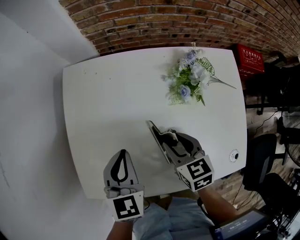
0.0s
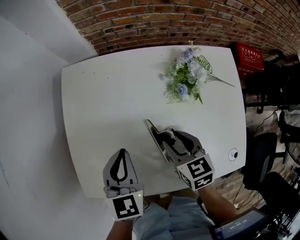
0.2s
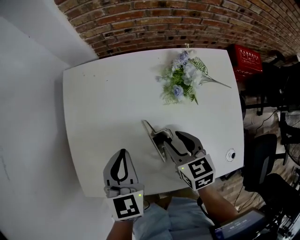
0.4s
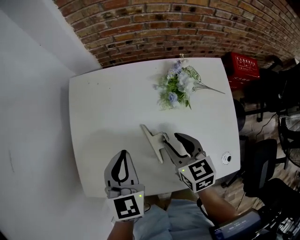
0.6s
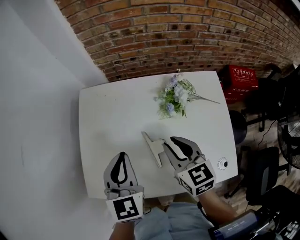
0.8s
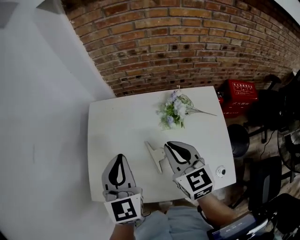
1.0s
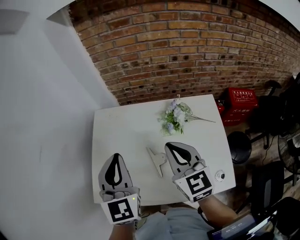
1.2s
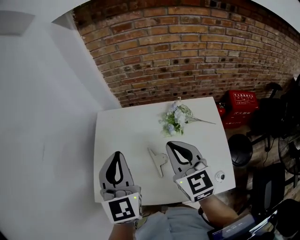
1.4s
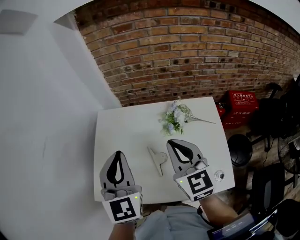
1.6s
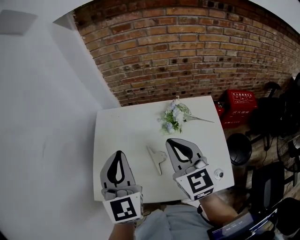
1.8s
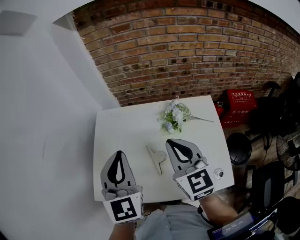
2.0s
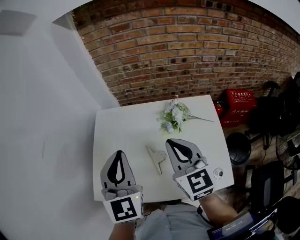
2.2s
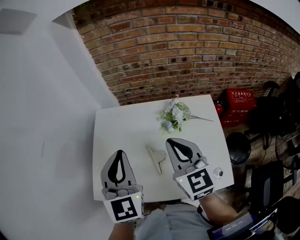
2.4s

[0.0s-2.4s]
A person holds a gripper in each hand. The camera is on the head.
0.0s to 1.2s: Both grippers move upward, roughly 25 cm. The left gripper swivels roughly 30 degrees. Meanwhile the right gripper swivels approximately 30 degrees, and closes.
1.2s to 2.4s: There are only small adjustments of the grippers.

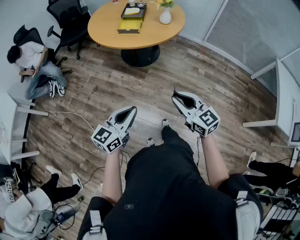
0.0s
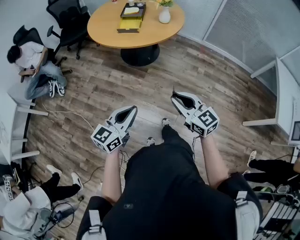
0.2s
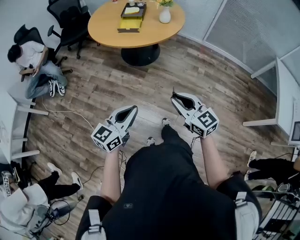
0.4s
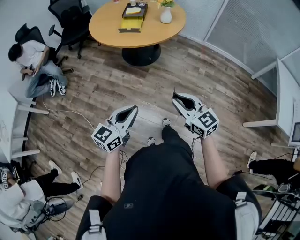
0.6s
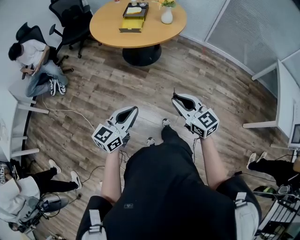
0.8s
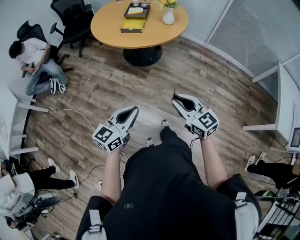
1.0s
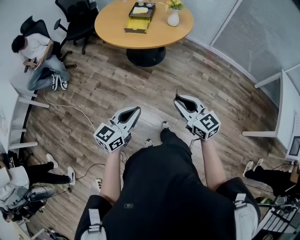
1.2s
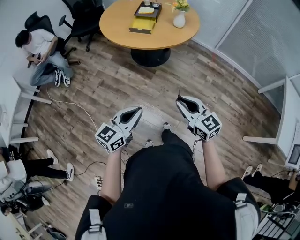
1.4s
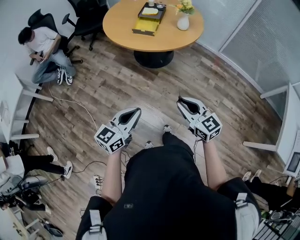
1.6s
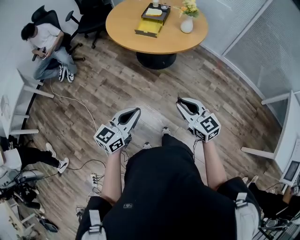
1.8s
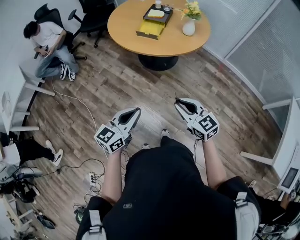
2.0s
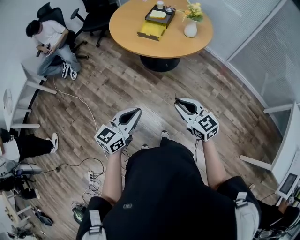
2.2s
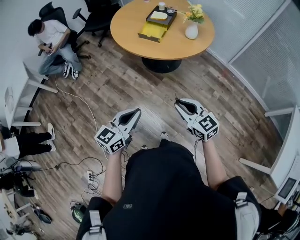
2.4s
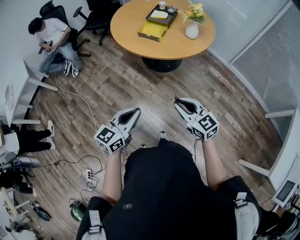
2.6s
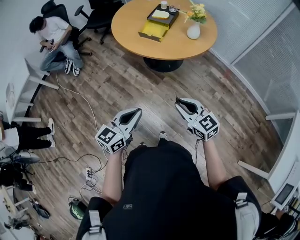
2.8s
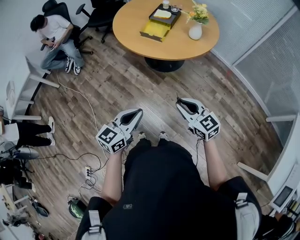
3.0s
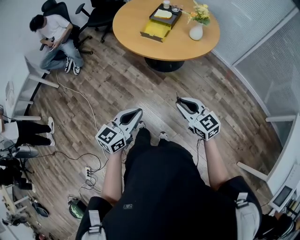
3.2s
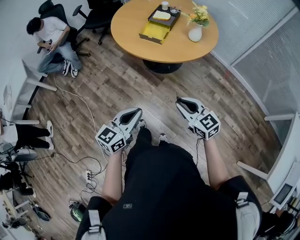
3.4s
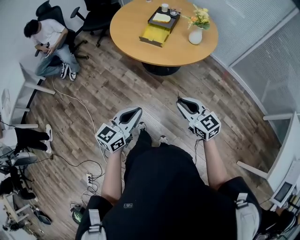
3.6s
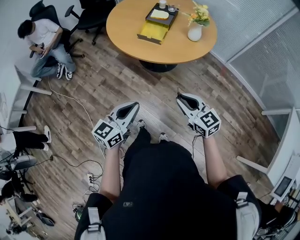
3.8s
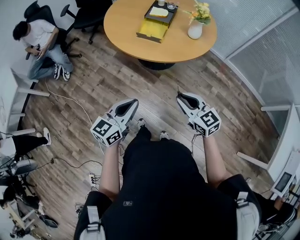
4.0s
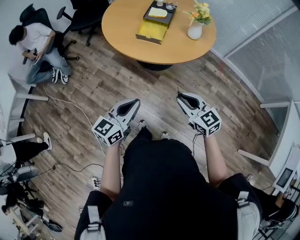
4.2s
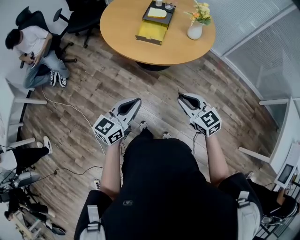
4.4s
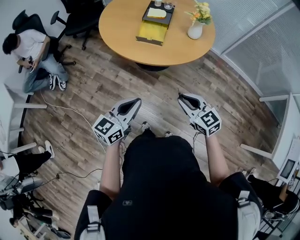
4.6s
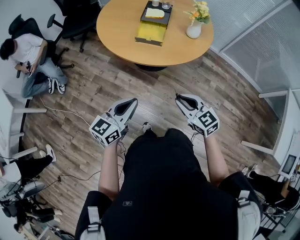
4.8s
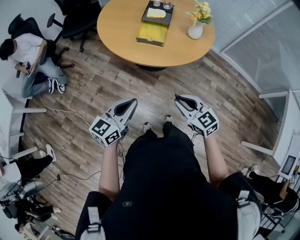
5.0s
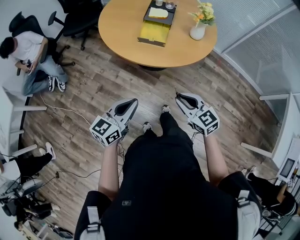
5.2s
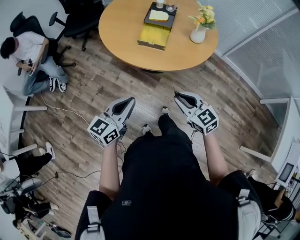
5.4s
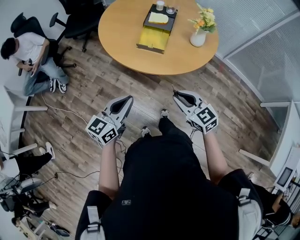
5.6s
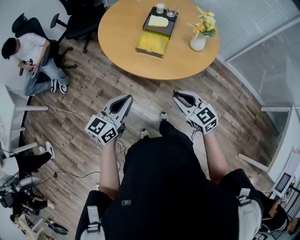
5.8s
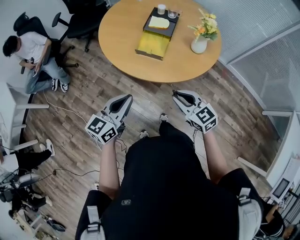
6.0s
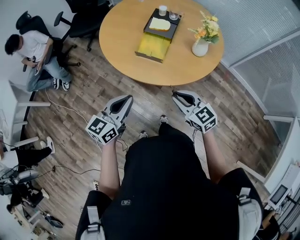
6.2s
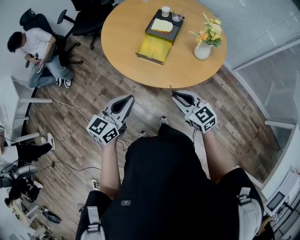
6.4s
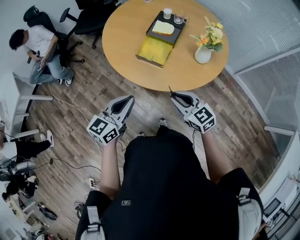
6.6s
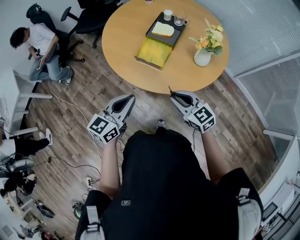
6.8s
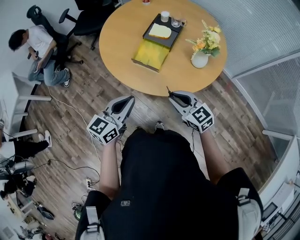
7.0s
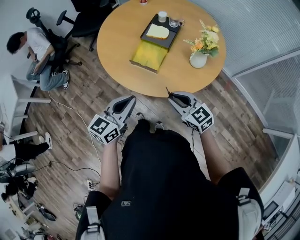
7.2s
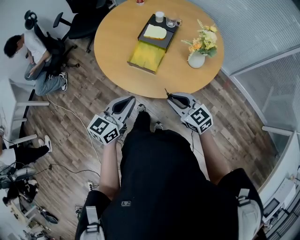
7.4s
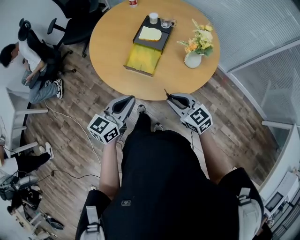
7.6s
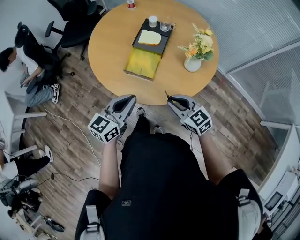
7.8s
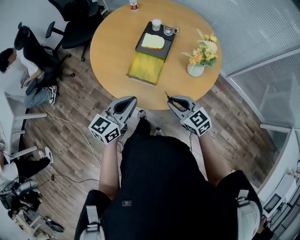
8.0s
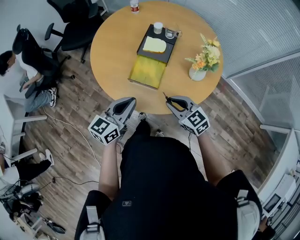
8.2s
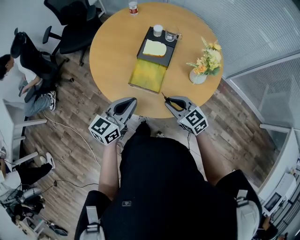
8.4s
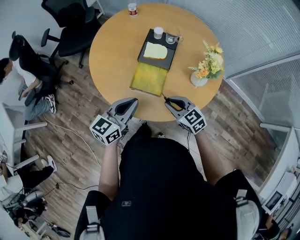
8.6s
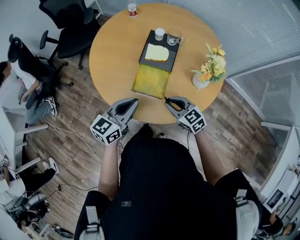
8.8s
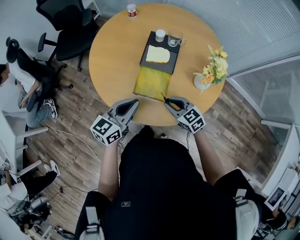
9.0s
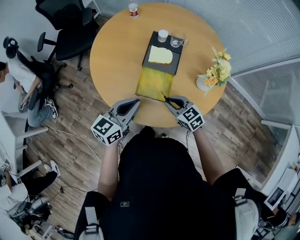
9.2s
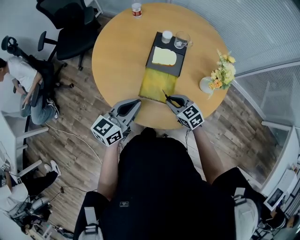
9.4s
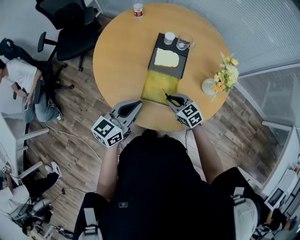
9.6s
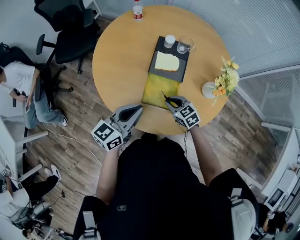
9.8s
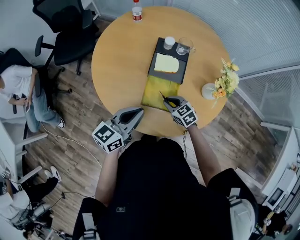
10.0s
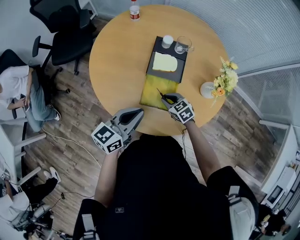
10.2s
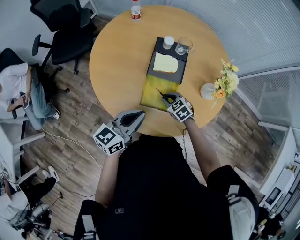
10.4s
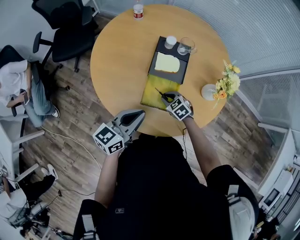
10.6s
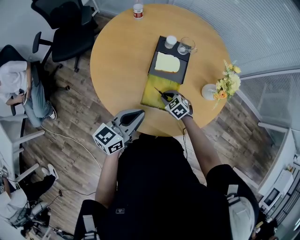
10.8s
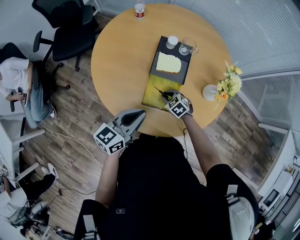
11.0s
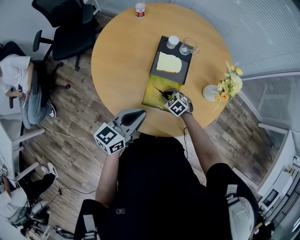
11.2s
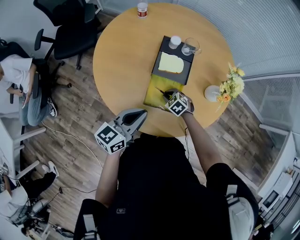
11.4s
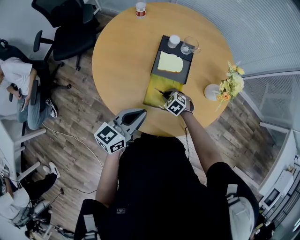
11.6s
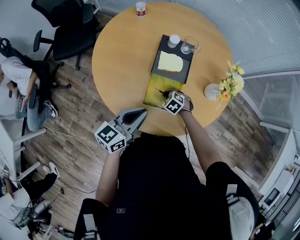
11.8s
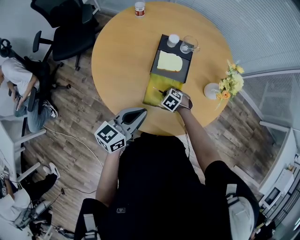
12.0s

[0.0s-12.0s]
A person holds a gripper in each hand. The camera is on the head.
0.0s to 1.6s: The right gripper goes some 5 cm forward.
1.6s to 3.0s: The left gripper goes roughly 10 cm to the right and forward; the right gripper moves forward and to the right, roughly 10 cm.
3.0s to 4.4s: The two grippers go about 15 cm forward and to the left.
4.4s to 6.0s: Both grippers travel together forward, about 15 cm.
6.0s to 7.6s: The left gripper travels to the right and forward by about 15 cm; the right gripper travels forward and to the right by some 10 cm.
7.6s to 9.0s: The left gripper moves forward, roughly 15 cm, while the right gripper shifts some 20 cm forward, to the left and downward.
9.0s to 10.4s: The right gripper heads downward and forward, covering approximately 15 cm.
10.4s to 12.0s: The right gripper goes about 5 cm downward, and rotates about 20 degrees.

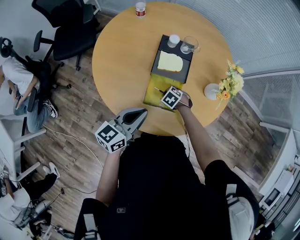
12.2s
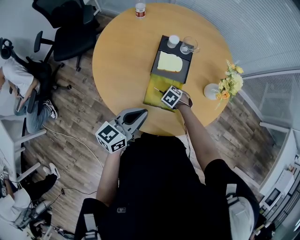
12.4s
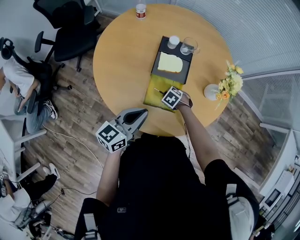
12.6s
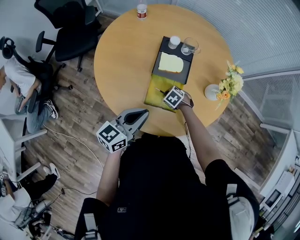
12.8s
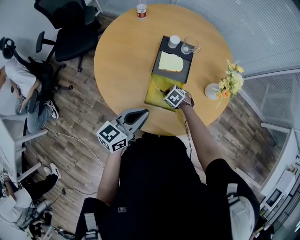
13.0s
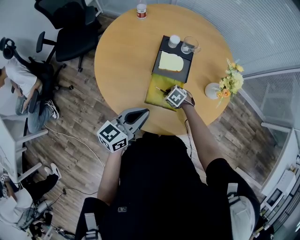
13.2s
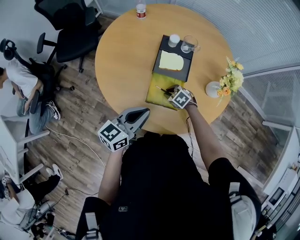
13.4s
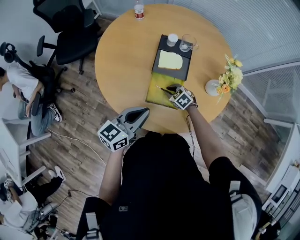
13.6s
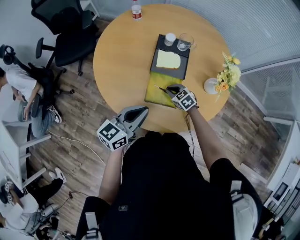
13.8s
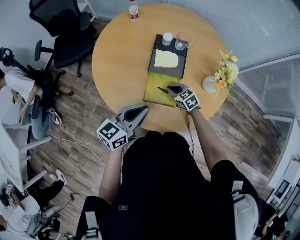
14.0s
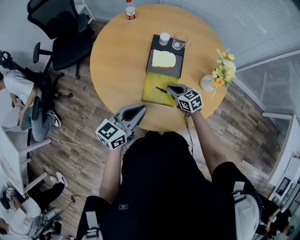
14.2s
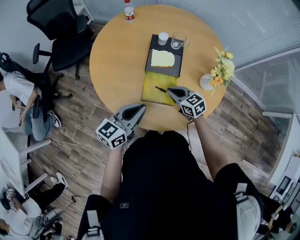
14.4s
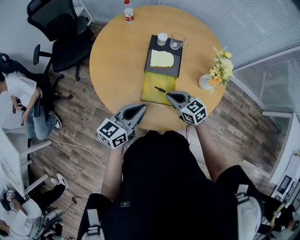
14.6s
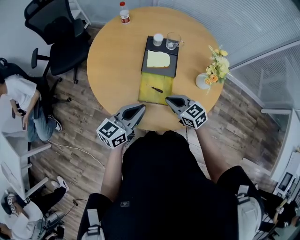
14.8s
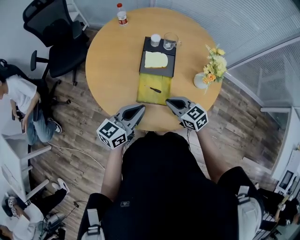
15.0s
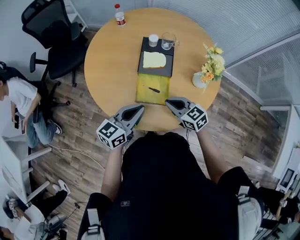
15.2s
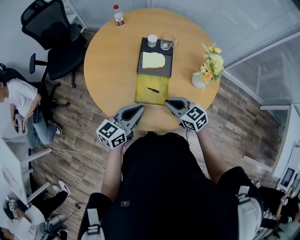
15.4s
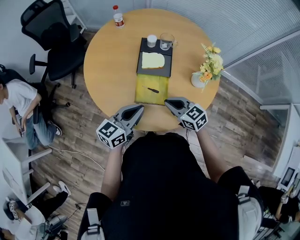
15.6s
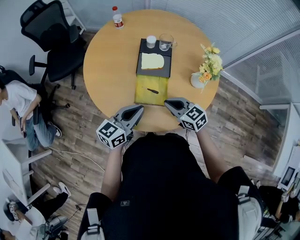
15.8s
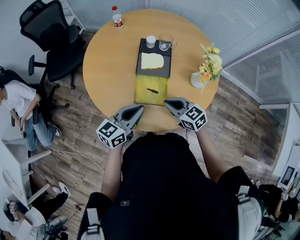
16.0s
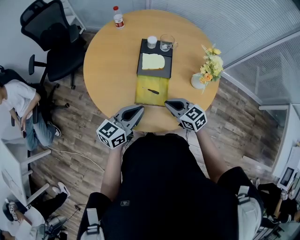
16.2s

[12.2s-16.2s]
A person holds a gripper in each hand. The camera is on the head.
12.2s to 13.6s: The grippers stay close to where they were, moving slightly.
13.6s to 14.8s: The right gripper shifts roughly 20 cm upward and backward, and rotates some 30 degrees.
14.8s to 16.2s: The grippers make only small movements.

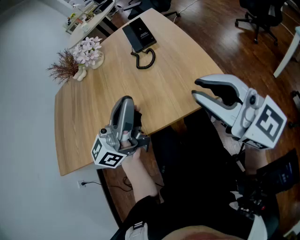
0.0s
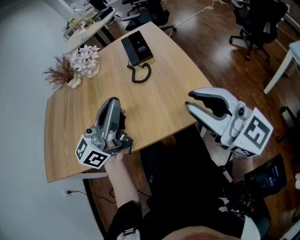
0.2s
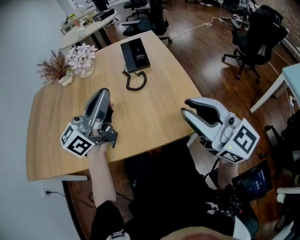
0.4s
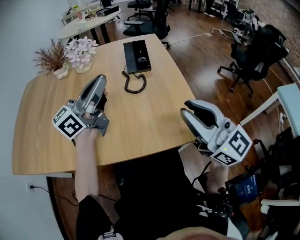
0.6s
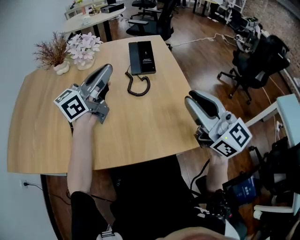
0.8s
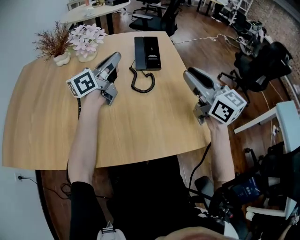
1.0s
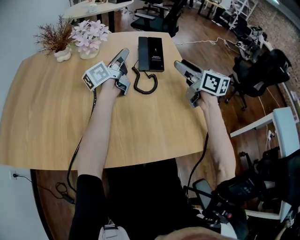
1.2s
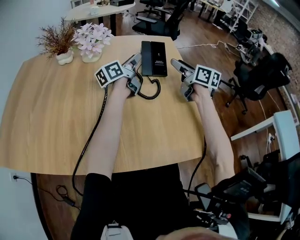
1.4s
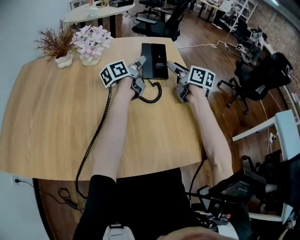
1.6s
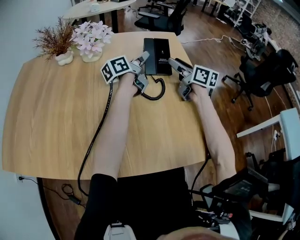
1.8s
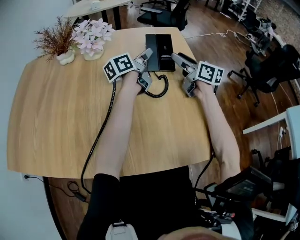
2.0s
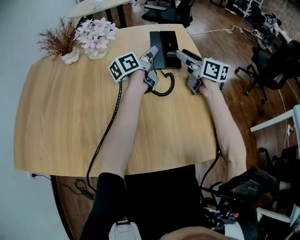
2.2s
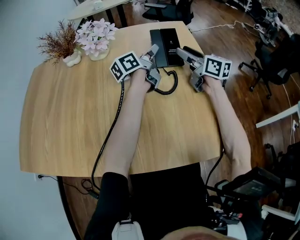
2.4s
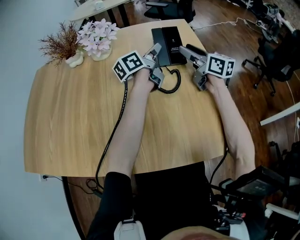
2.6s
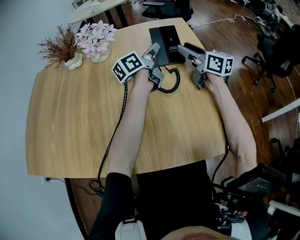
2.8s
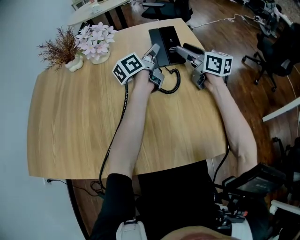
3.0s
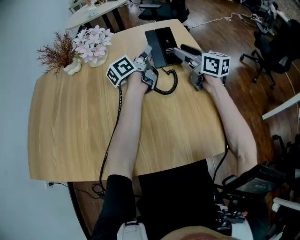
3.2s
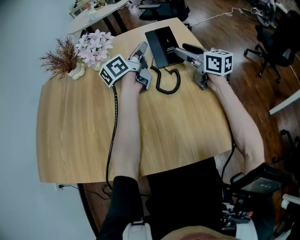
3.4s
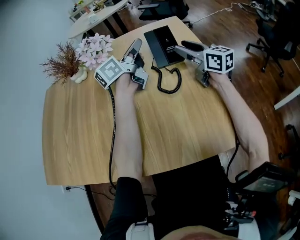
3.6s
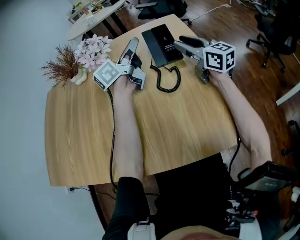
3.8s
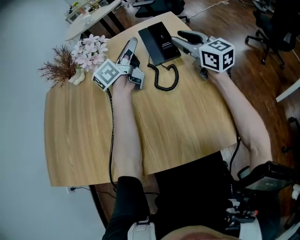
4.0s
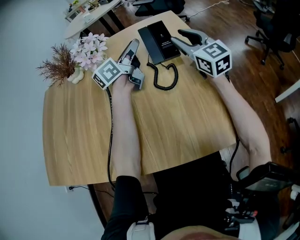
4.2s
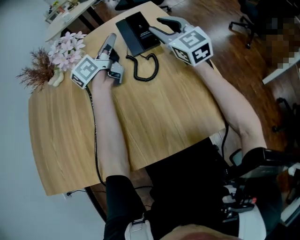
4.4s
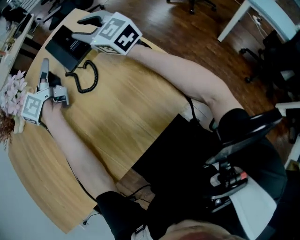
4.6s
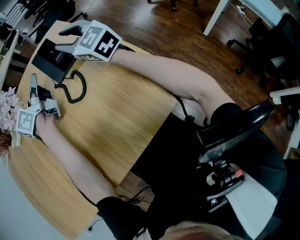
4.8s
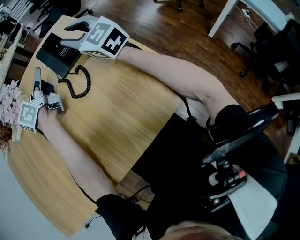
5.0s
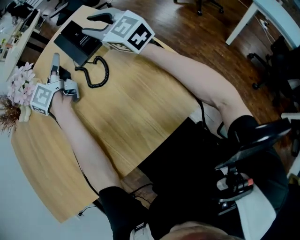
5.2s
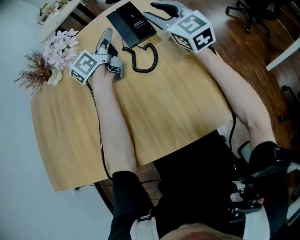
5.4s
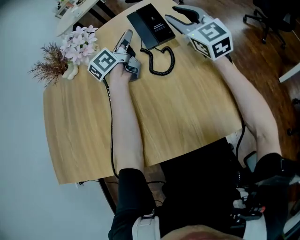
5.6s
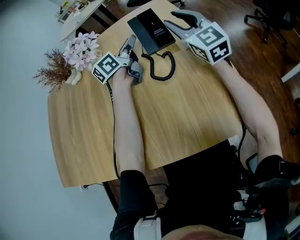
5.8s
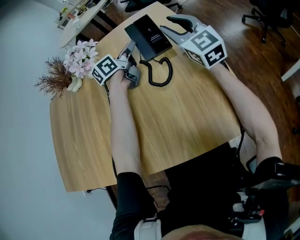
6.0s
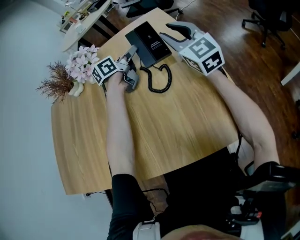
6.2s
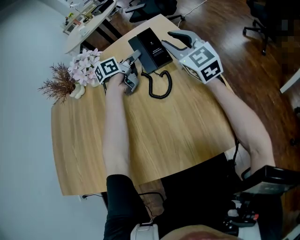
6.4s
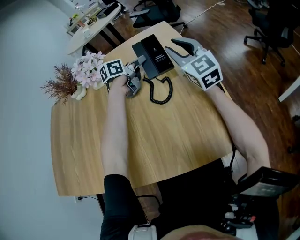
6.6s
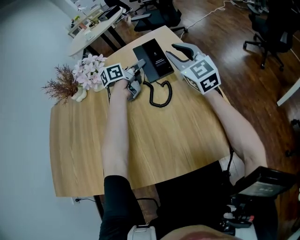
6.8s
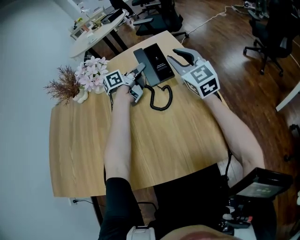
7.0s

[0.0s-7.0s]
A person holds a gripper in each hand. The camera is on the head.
0.0s to 1.4s: The grippers both shift forward by about 40 cm. The left gripper swivels some 40 degrees, and opens. The right gripper swivels some 40 degrees, and opens up.
1.4s to 2.8s: The grippers stay close to where they were, moving slightly.
2.8s to 4.2s: The right gripper rotates some 30 degrees, and closes up.
4.2s to 5.6s: The grippers move only a little.
5.6s to 7.0s: The left gripper moves approximately 5 cm.
